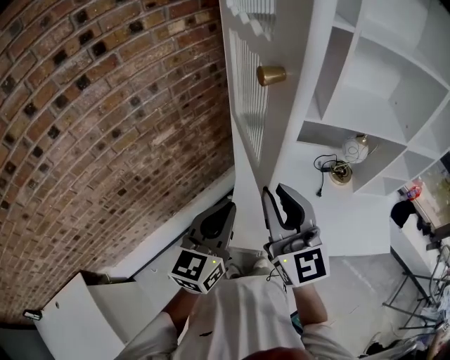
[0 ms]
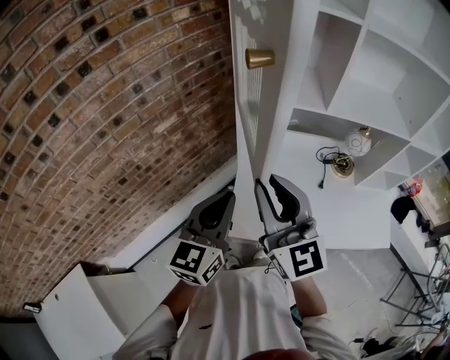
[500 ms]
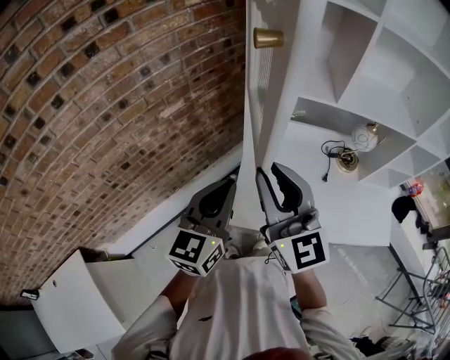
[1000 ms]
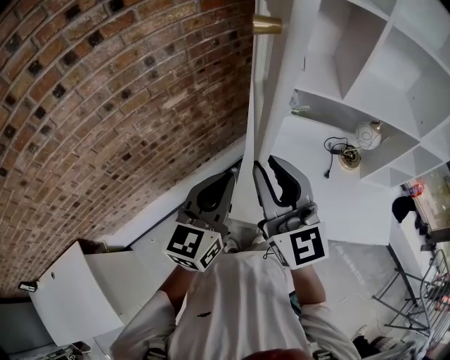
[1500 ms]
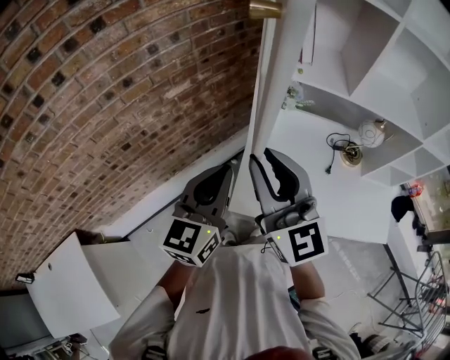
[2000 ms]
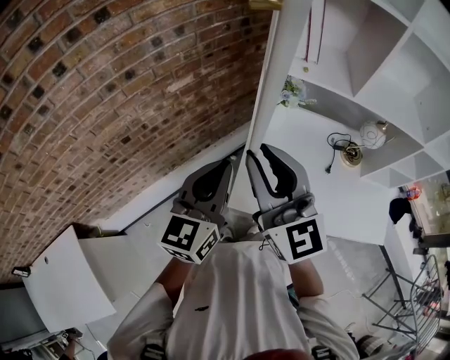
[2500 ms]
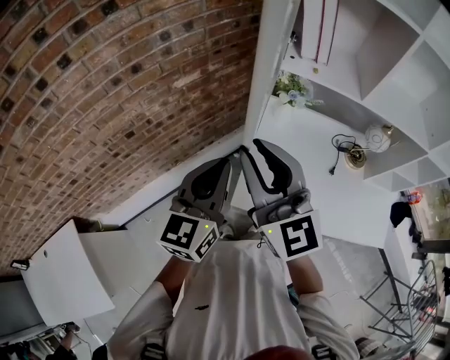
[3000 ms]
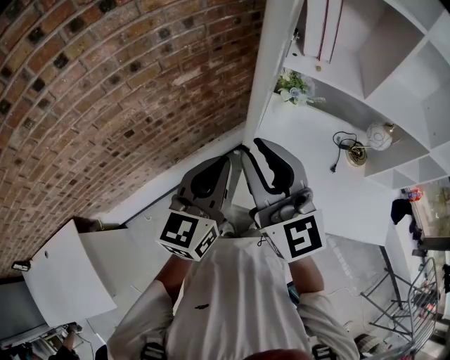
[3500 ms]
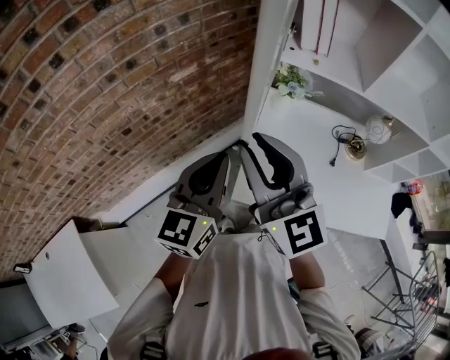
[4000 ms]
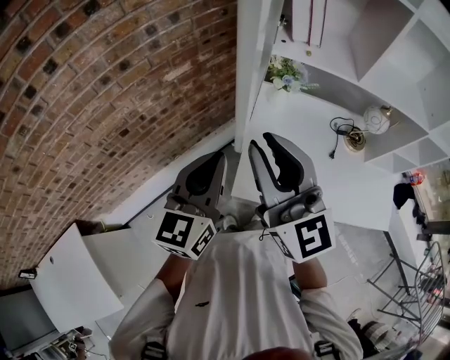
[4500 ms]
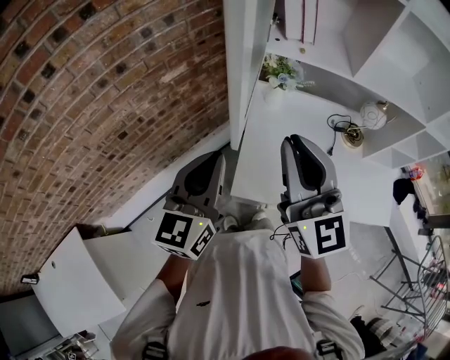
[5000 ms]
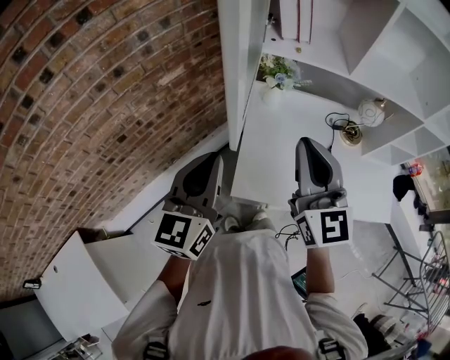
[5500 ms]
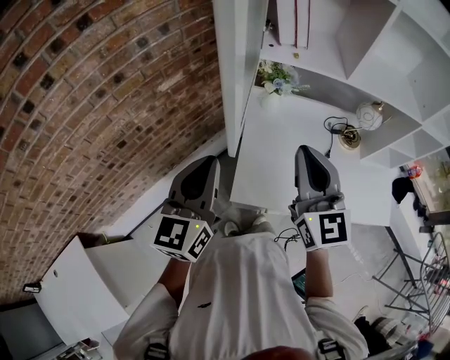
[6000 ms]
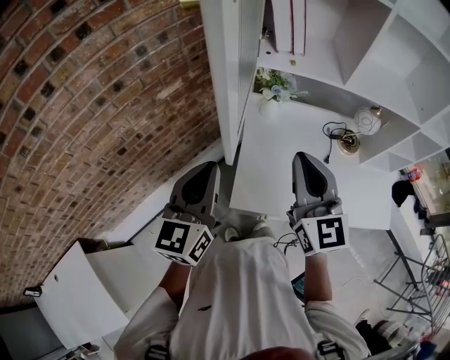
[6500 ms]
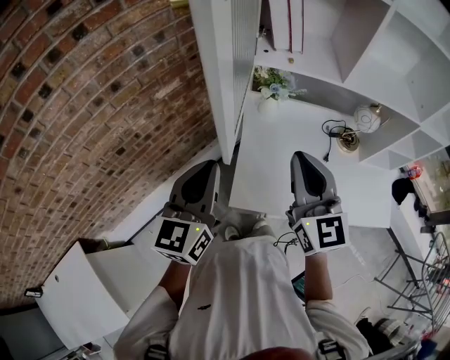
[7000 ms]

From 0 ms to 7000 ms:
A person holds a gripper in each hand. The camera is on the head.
From 0 ms to 2000 ms: The two grippers go some 5 cm to the left.
From 2000 ms to 3500 ms: The right gripper moves approximately 5 cm.
From 3500 ms to 5000 ms: The right gripper travels to the right by some 10 cm.
From 5000 ms to 7000 ms: The right gripper moves downward, some 5 cm.

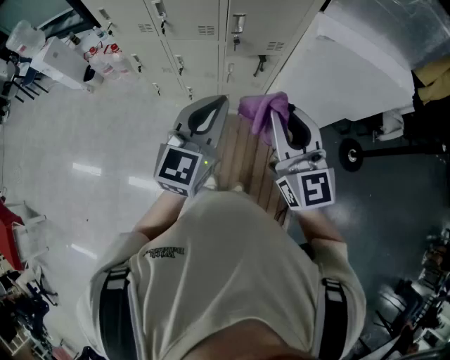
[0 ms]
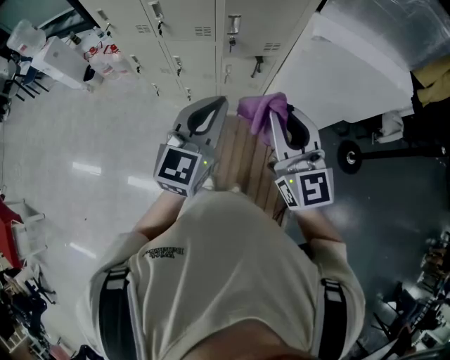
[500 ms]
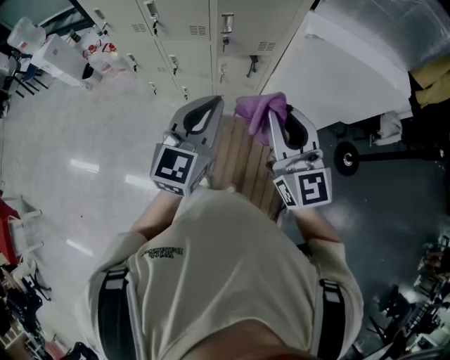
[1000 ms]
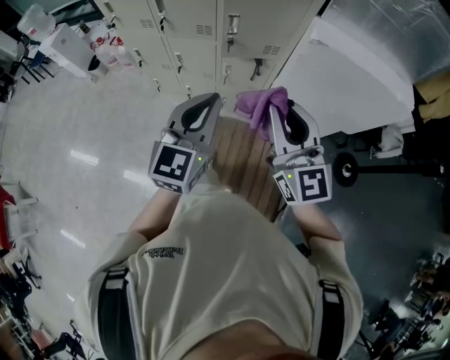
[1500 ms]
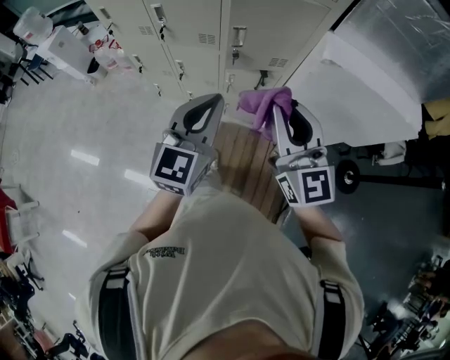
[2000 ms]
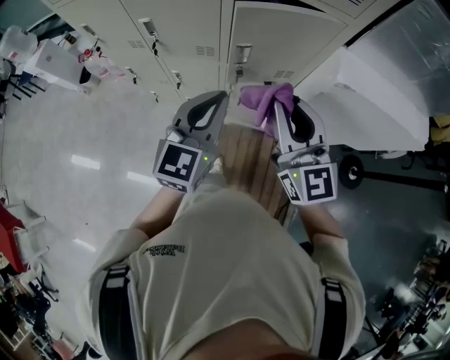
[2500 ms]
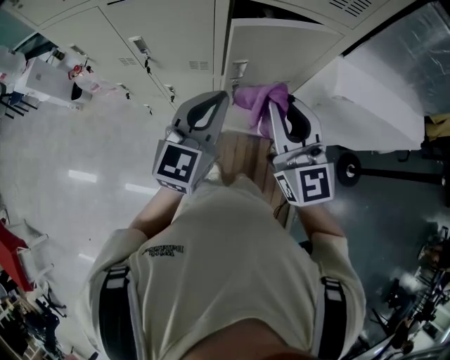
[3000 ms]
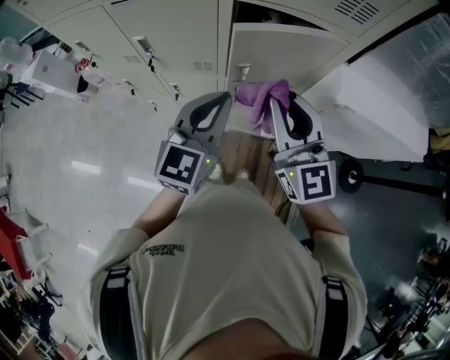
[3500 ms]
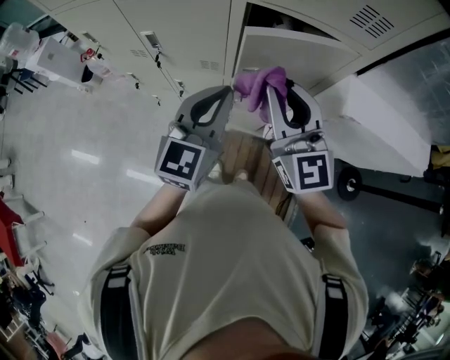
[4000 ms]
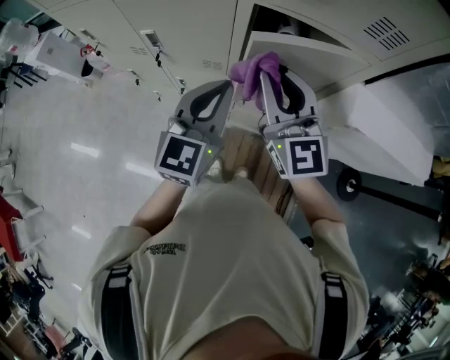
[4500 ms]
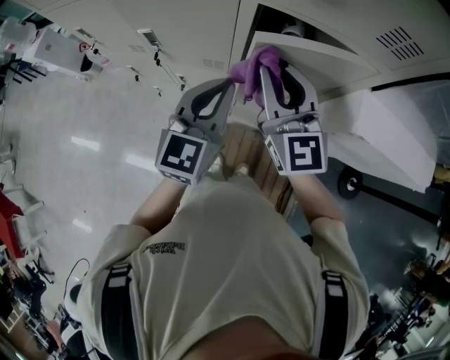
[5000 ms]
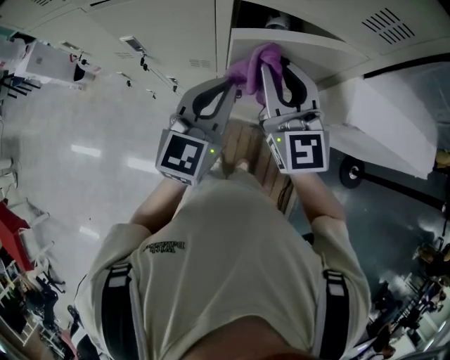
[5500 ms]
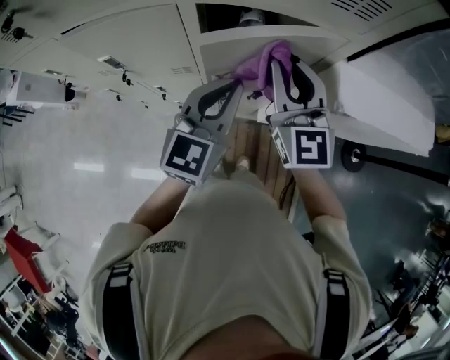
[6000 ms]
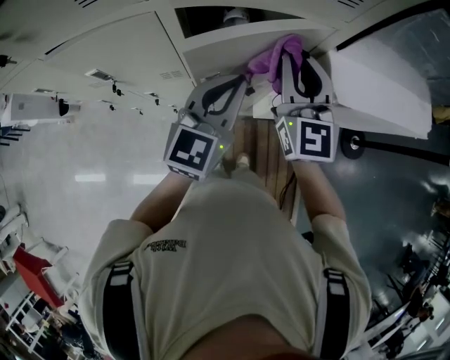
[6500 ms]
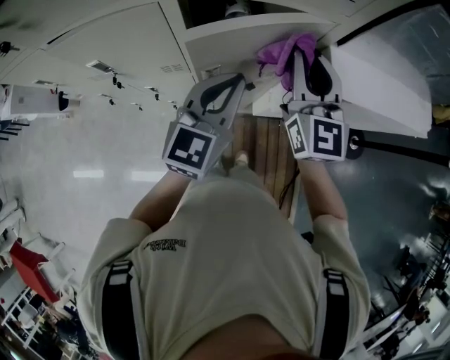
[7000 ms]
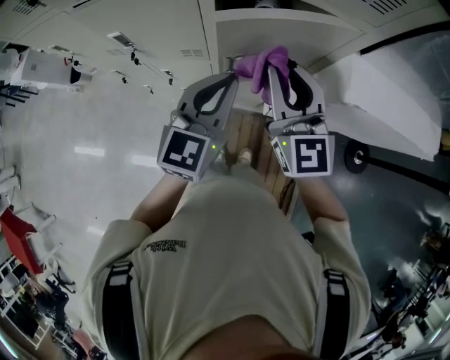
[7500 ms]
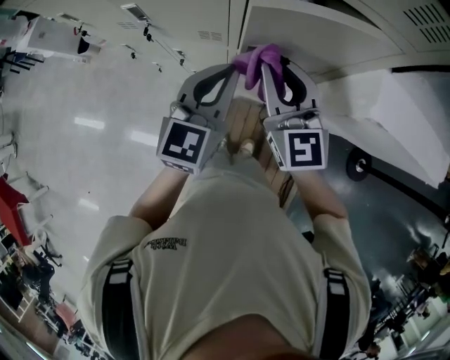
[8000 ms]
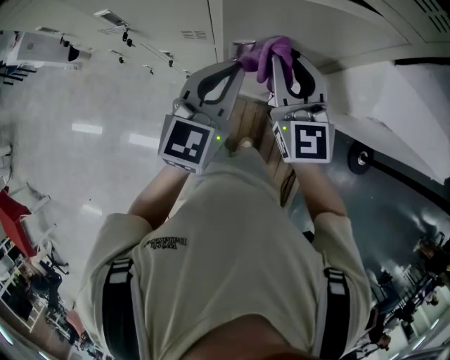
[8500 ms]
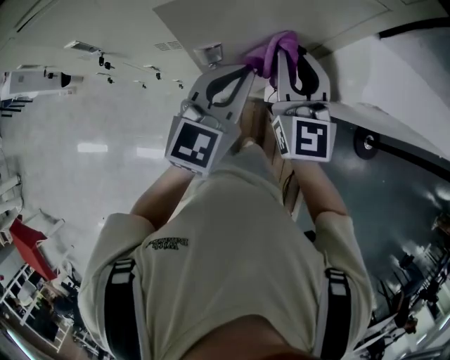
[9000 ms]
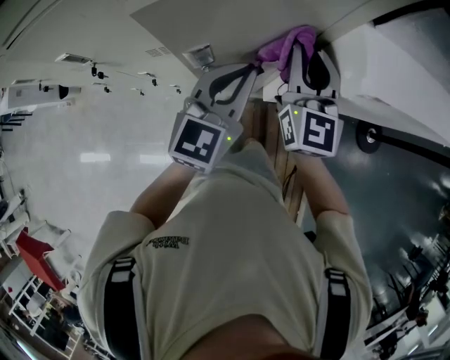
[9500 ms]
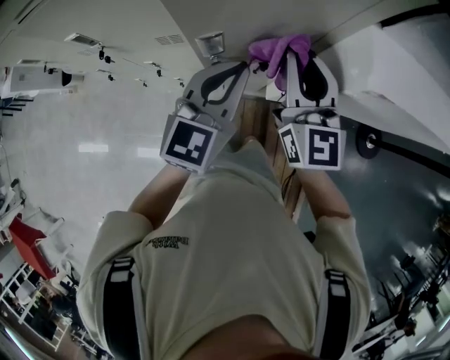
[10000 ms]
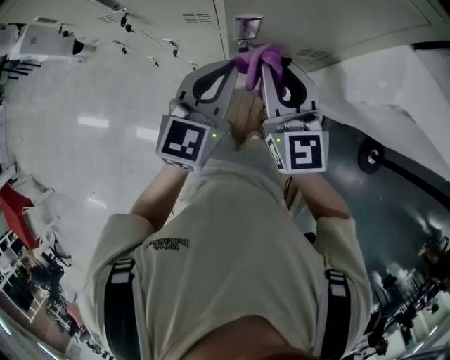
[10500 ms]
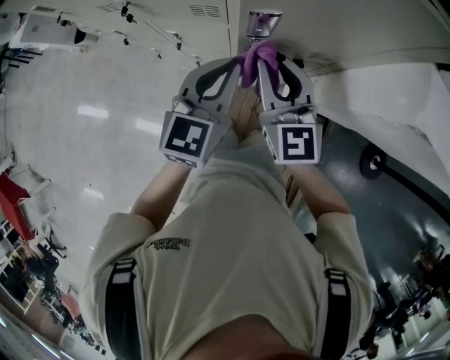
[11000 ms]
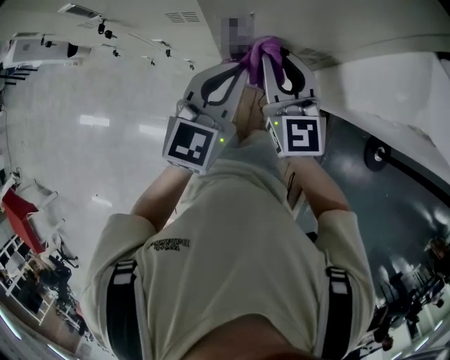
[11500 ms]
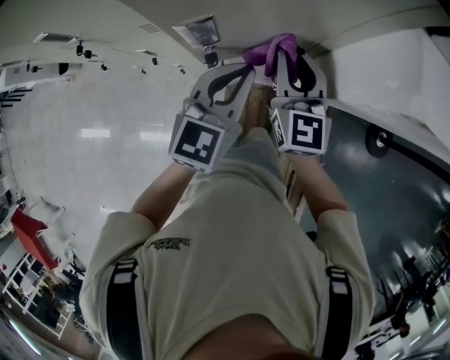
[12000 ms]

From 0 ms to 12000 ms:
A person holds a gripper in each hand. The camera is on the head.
From 0 ms to 2000 ms: Both grippers travel together forward, roughly 10 cm.
From 2000 ms to 4000 ms: Both grippers travel together forward, some 20 cm.
From 4000 ms to 6000 ms: The right gripper goes approximately 10 cm forward and to the right; the left gripper shifts approximately 10 cm to the right and forward.
From 6000 ms to 8000 ms: The left gripper shifts some 5 cm to the left. The right gripper goes about 10 cm to the left and downward.
From 8000 ms to 10000 ms: Both grippers move to the right, some 10 cm. The right gripper rotates roughly 20 degrees.
From 10000 ms to 12000 ms: The two grippers go approximately 10 cm downward.

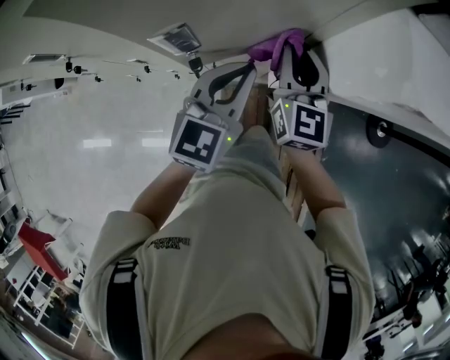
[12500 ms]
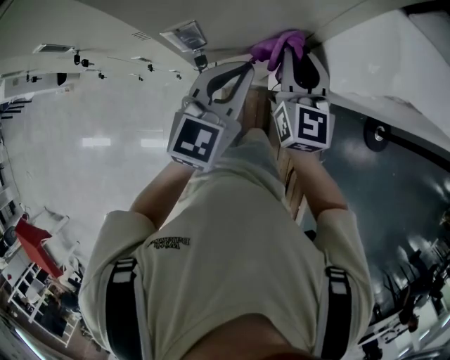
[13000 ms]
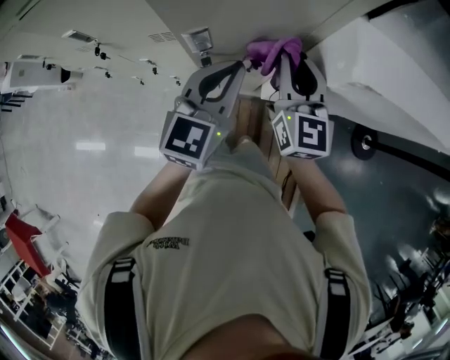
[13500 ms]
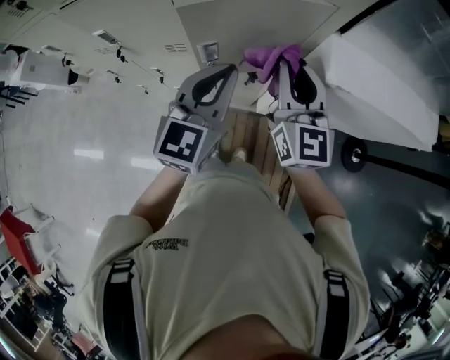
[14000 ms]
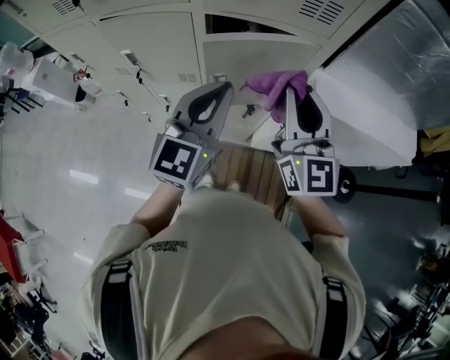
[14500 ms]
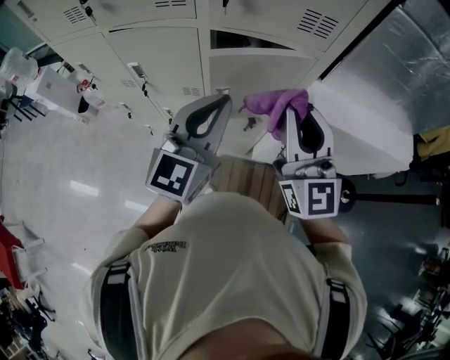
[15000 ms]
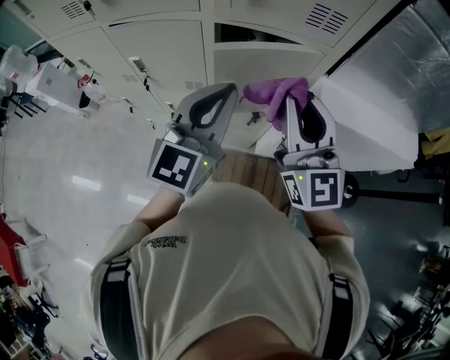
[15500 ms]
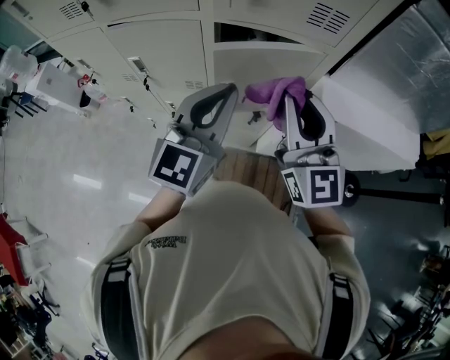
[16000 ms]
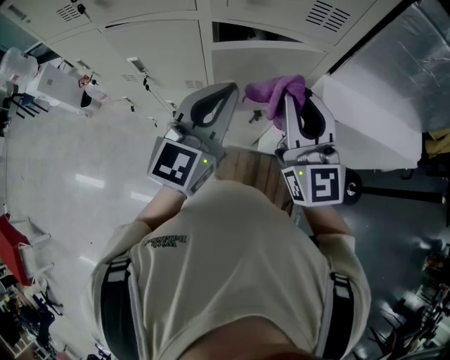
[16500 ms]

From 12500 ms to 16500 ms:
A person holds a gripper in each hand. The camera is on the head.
From 12500 ms to 14500 ms: Both grippers travel together upward, approximately 30 cm. The left gripper changes its angle by some 20 degrees. The right gripper turns by approximately 30 degrees.
From 14500 ms to 16500 ms: The grippers make only small movements.

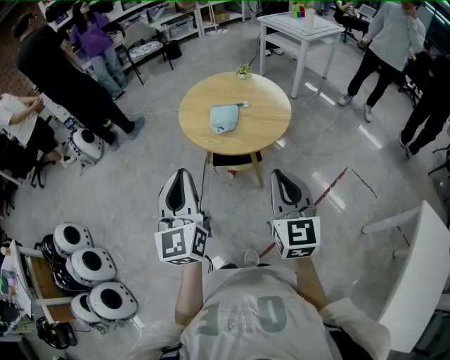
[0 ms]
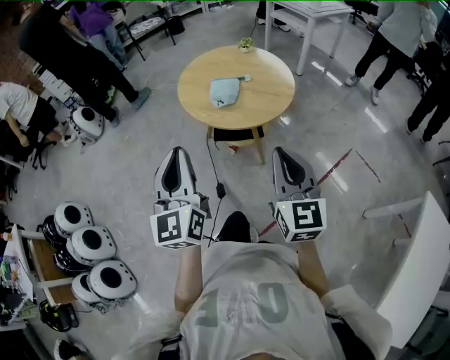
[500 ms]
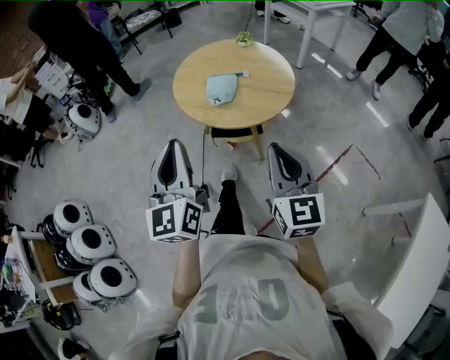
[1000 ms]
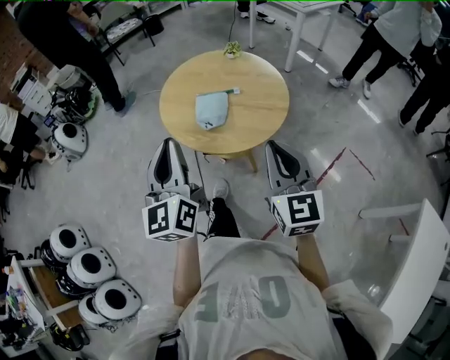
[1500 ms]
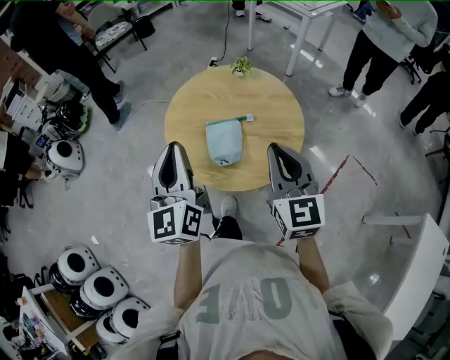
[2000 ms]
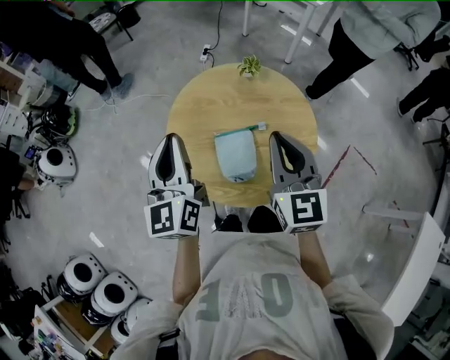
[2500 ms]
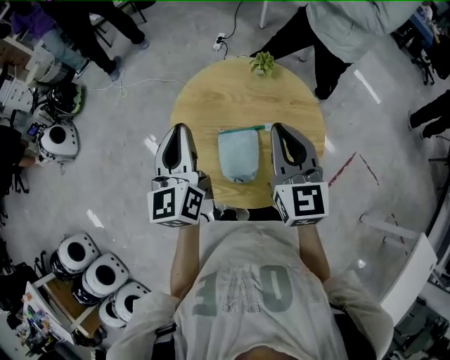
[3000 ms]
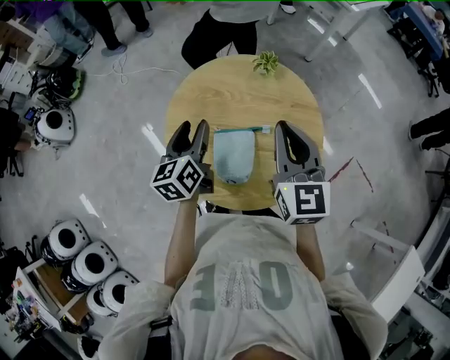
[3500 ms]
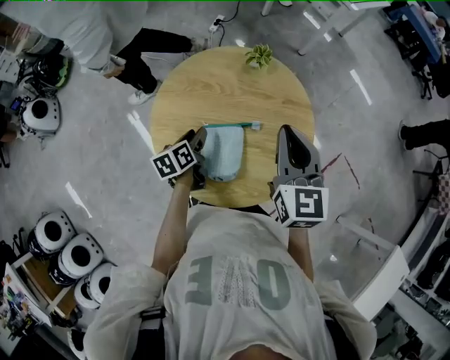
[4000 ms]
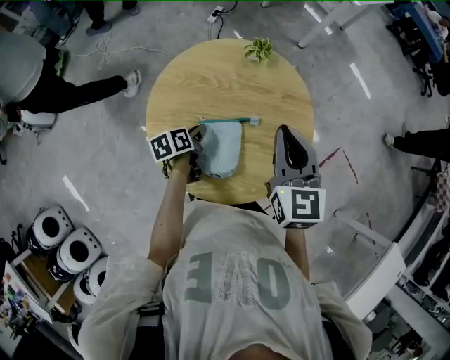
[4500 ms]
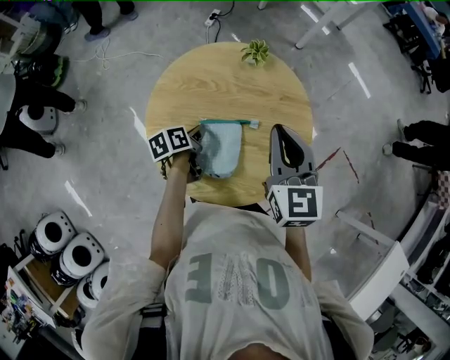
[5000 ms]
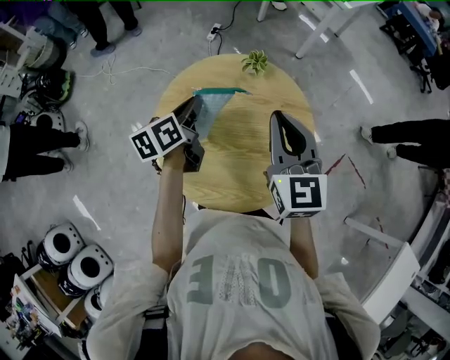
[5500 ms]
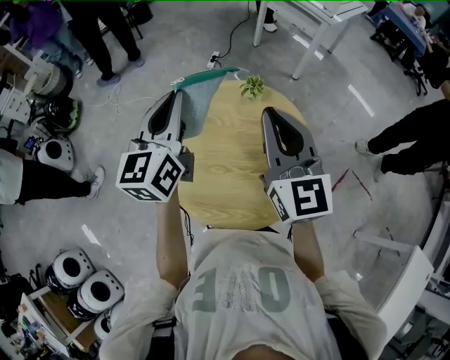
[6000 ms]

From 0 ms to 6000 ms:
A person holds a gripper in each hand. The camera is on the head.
From 0 ms to 2000 ms: Both grippers move forward, some 35 cm.
From 2000 ms to 4000 ms: The left gripper heads downward and forward, covering approximately 35 cm, tips its fingers downward by roughly 40 degrees, and opens. The right gripper goes approximately 20 cm forward.
From 4000 ms to 6000 ms: The right gripper is displaced upward and to the left by about 10 cm; the left gripper is displaced upward by some 35 cm, points its fingers about 40 degrees further upward, and closes up.
